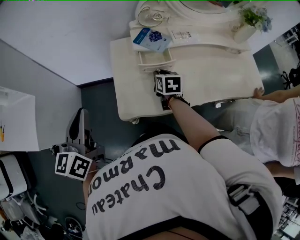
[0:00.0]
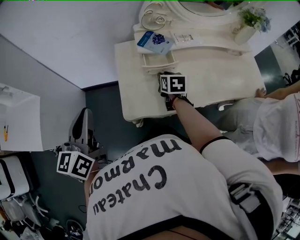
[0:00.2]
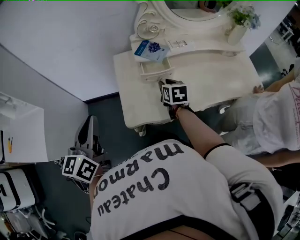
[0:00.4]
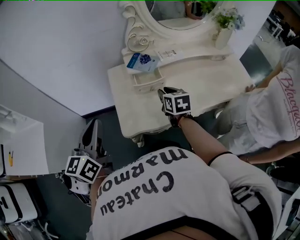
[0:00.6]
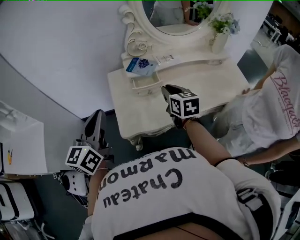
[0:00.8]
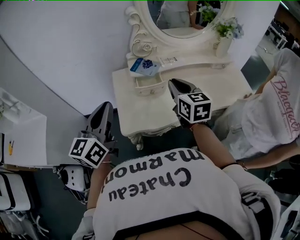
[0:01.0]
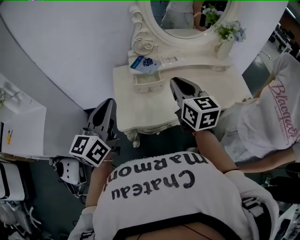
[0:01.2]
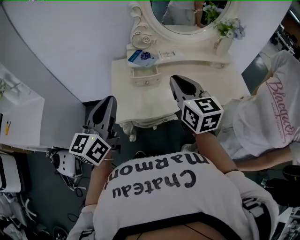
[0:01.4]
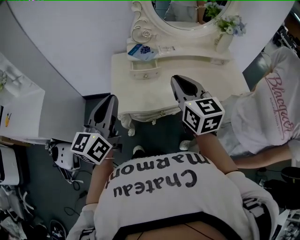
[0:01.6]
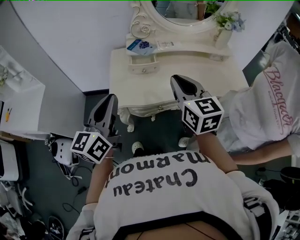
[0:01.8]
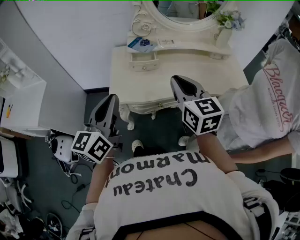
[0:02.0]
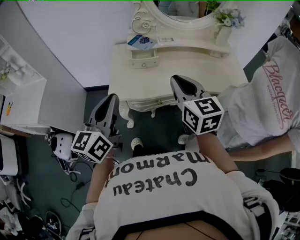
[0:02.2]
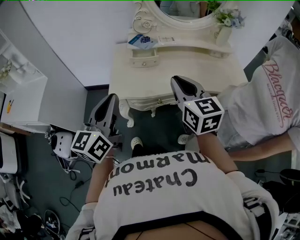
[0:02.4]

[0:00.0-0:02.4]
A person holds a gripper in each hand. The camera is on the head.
0.0 to 1.2 s: The right gripper goes some 30 cm upward and backward, and points its fingers roughly 30 degrees further upward, while the left gripper goes roughly 15 cm to the right and upward.
1.2 to 2.4 s: The right gripper is displaced backward by about 15 cm, while the left gripper shifts some 15 cm backward and to the right.

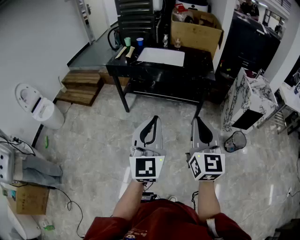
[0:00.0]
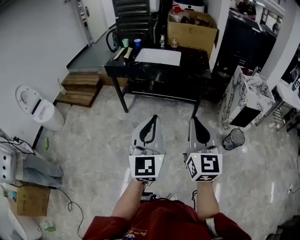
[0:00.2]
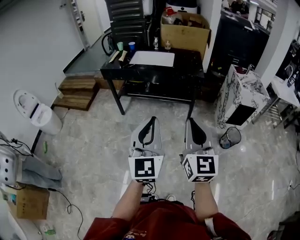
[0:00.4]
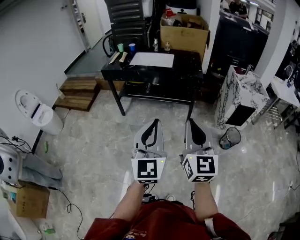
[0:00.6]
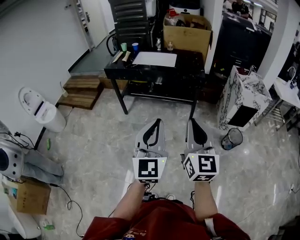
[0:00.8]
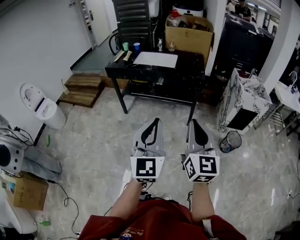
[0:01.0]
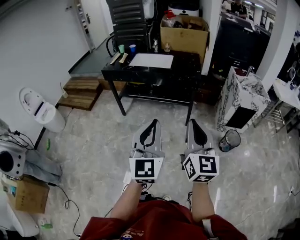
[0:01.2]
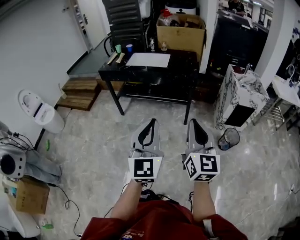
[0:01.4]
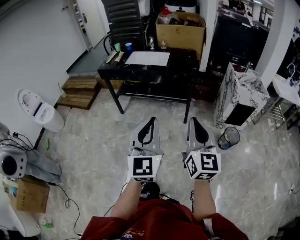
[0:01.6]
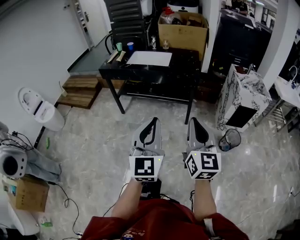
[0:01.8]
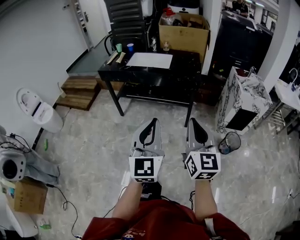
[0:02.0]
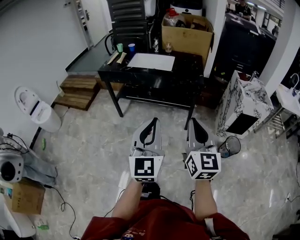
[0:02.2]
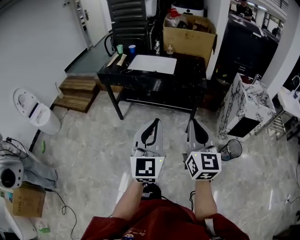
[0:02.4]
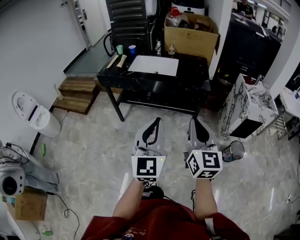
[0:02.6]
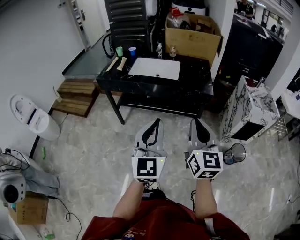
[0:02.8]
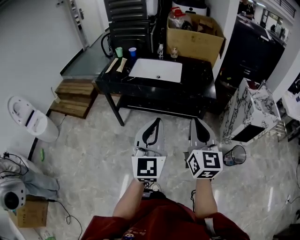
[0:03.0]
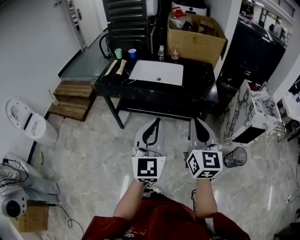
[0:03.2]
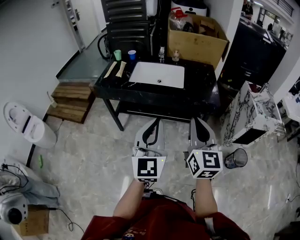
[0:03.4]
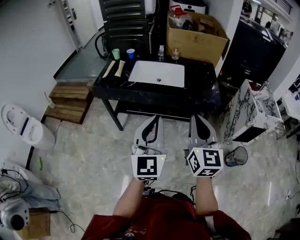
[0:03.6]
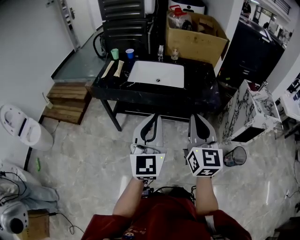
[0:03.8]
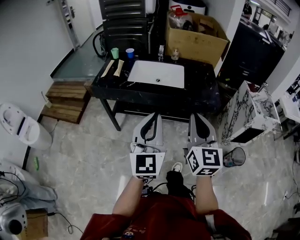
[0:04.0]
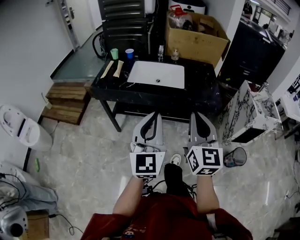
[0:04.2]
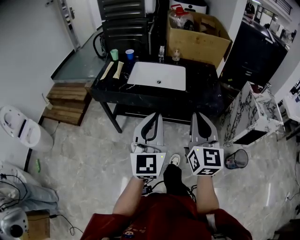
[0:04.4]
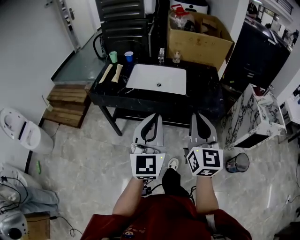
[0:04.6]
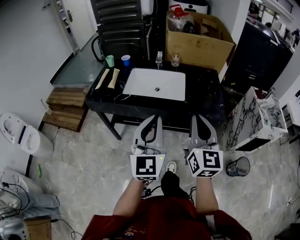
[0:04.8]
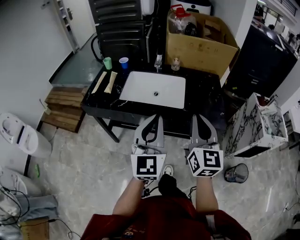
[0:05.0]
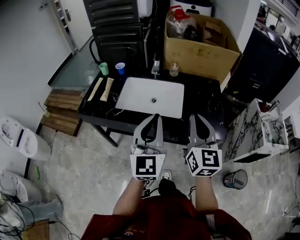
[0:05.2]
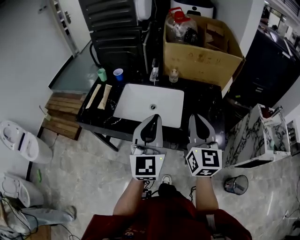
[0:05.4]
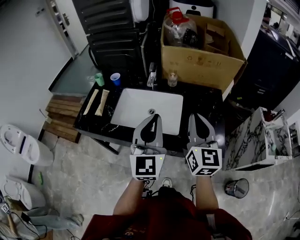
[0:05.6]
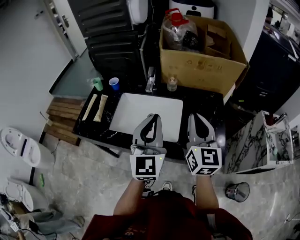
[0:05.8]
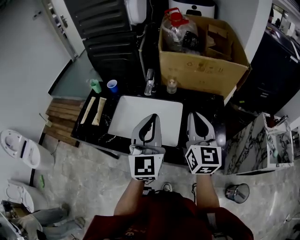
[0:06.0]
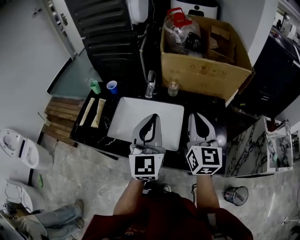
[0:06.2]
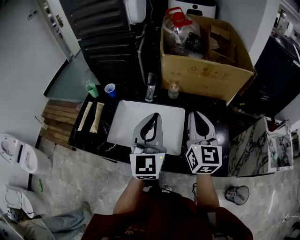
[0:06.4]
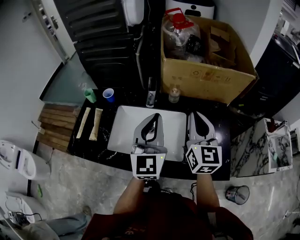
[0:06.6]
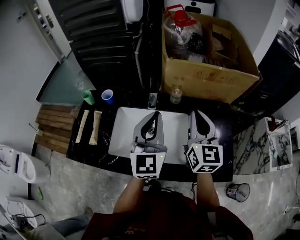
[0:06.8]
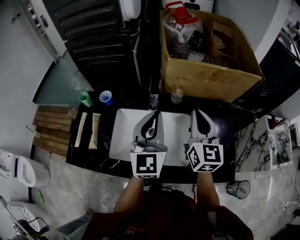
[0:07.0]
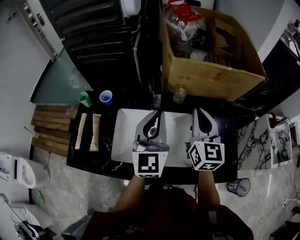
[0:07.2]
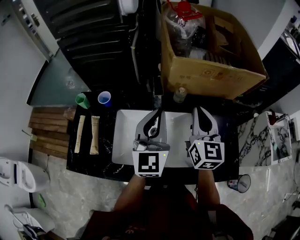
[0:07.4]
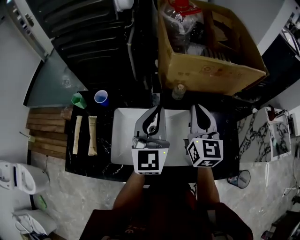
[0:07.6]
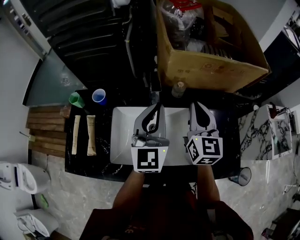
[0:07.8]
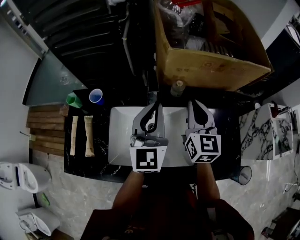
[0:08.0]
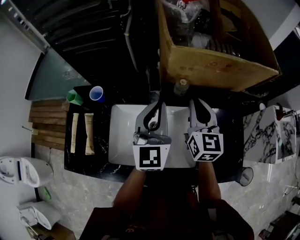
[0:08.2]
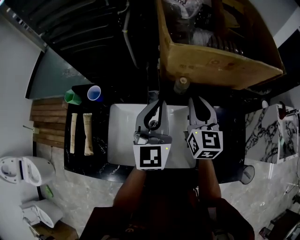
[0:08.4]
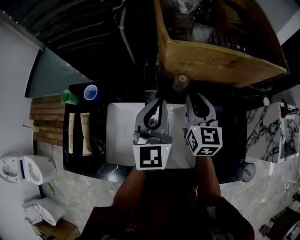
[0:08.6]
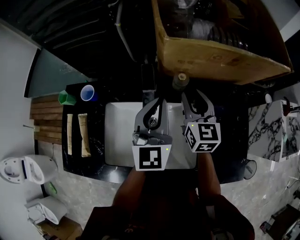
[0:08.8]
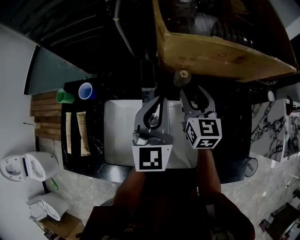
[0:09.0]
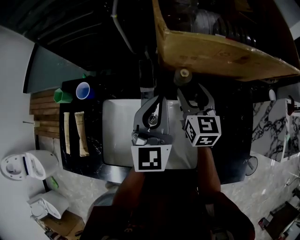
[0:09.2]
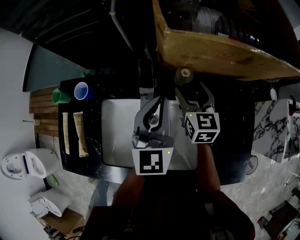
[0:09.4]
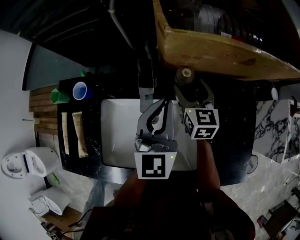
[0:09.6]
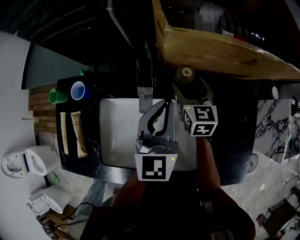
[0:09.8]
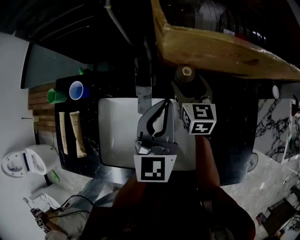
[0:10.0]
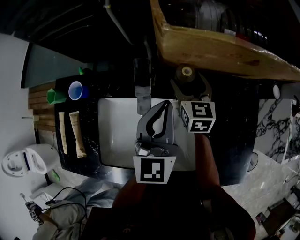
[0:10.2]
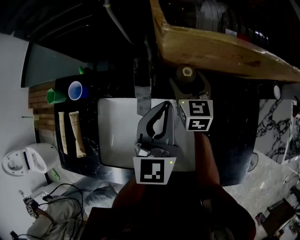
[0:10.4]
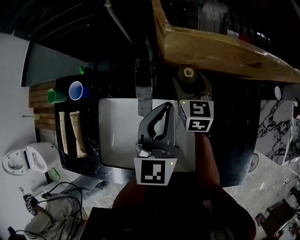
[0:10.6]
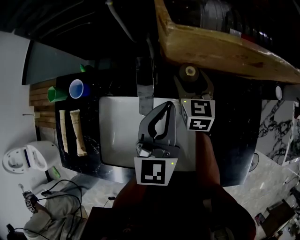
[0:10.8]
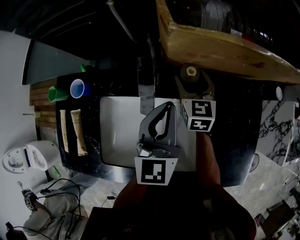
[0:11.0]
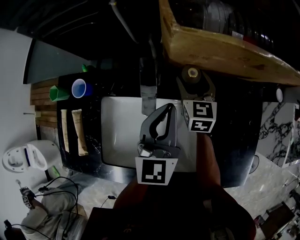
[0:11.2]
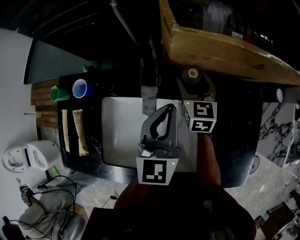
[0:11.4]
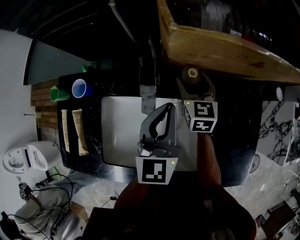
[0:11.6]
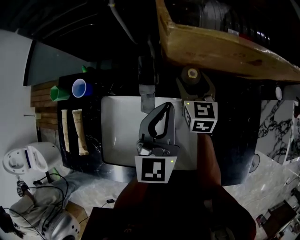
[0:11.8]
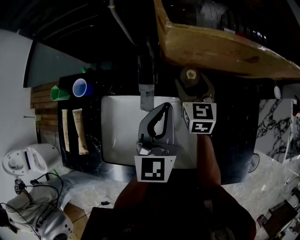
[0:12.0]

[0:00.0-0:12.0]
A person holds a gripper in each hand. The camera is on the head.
0.0 to 1.6 s: Both grippers travel together to the right and backward, approximately 15 cm.
1.6 to 3.0 s: The two grippers go about 30 cm forward and to the left.
3.0 to 4.4 s: The two grippers go about 15 cm forward and to the left.
4.4 to 6.0 s: The pair of grippers is taken forward, approximately 40 cm.
6.0 to 7.6 s: Both grippers move forward and to the left, about 20 cm.
7.6 to 9.0 s: The right gripper travels downward and forward by approximately 20 cm, and opens. Meanwhile the left gripper is displaced forward and downward by approximately 10 cm.
9.0 to 10.4 s: The right gripper shifts approximately 10 cm downward and forward, and opens.
10.4 to 12.0 s: The grippers make only small movements.

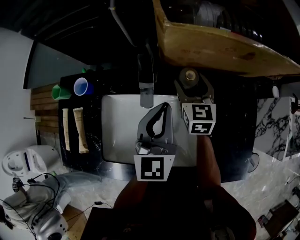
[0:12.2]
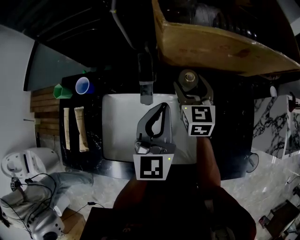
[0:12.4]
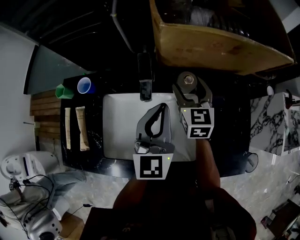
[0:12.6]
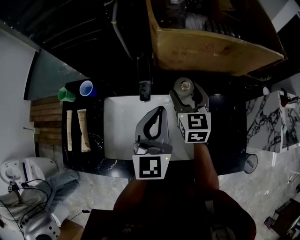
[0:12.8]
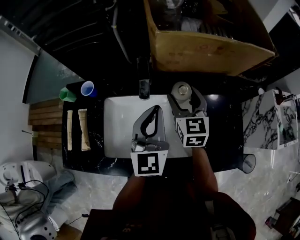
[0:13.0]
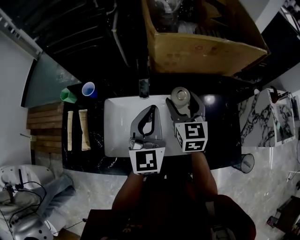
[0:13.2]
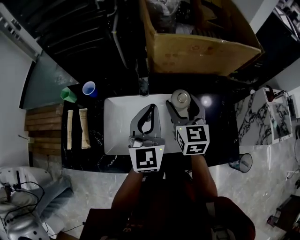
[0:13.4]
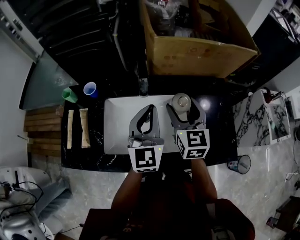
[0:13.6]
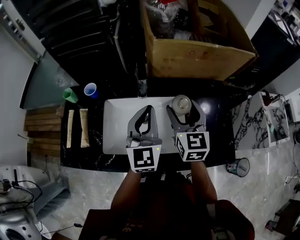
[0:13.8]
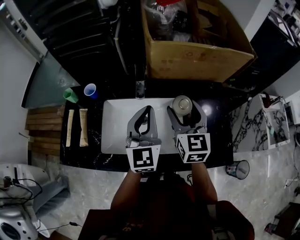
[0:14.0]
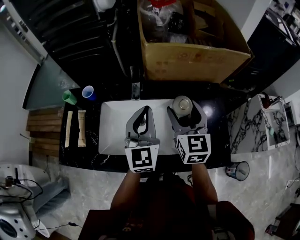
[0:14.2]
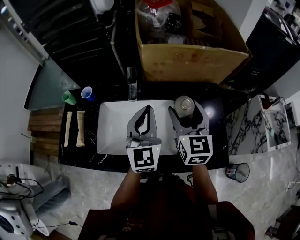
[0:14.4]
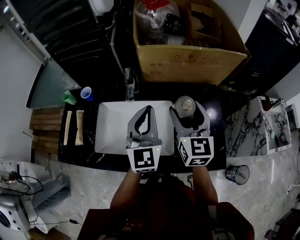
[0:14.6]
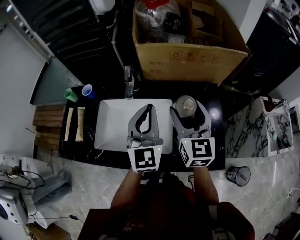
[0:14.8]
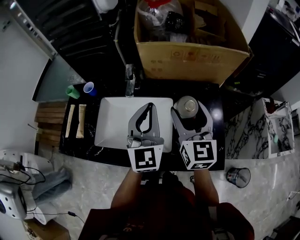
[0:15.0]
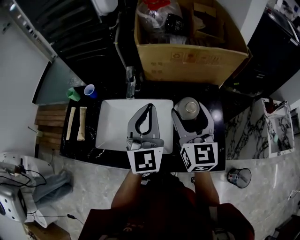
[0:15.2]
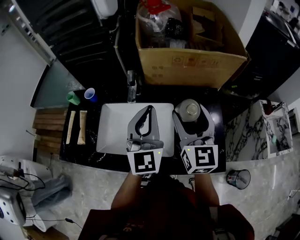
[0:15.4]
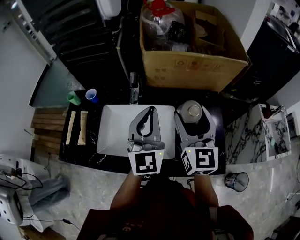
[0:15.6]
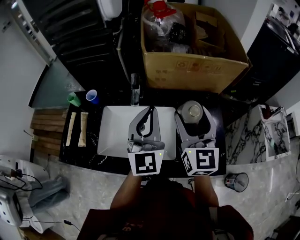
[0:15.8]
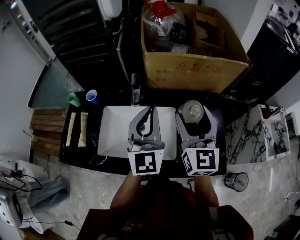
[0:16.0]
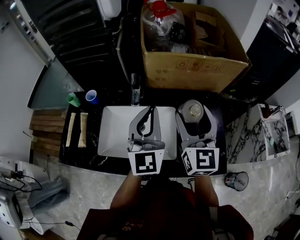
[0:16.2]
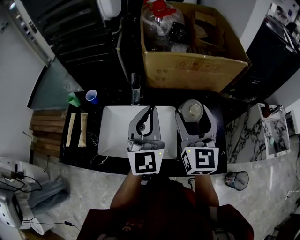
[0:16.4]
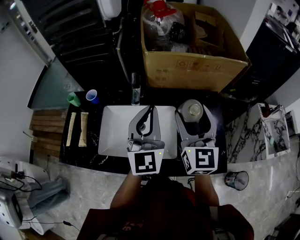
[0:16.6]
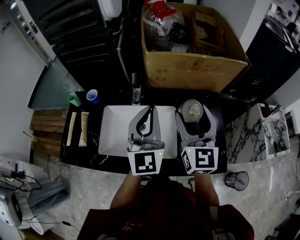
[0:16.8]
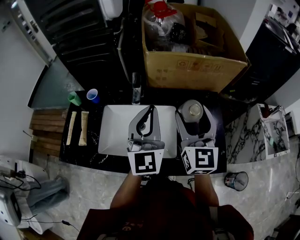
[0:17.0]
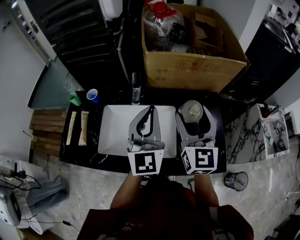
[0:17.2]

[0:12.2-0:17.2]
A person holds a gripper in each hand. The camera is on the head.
12.2 to 13.8 s: The right gripper shifts about 25 cm backward and upward, while the left gripper shifts approximately 15 cm backward and upward.
13.8 to 15.6 s: The left gripper travels to the right and upward by some 10 cm, while the right gripper shifts some 10 cm upward and to the right.
15.6 to 17.2 s: The grippers make only small movements.

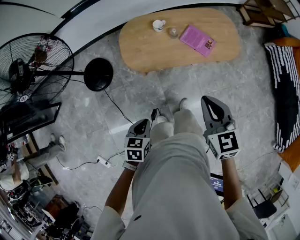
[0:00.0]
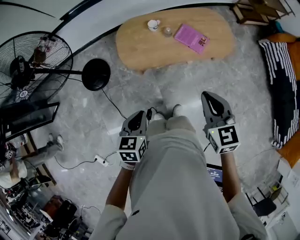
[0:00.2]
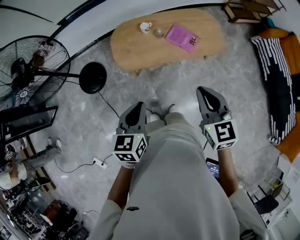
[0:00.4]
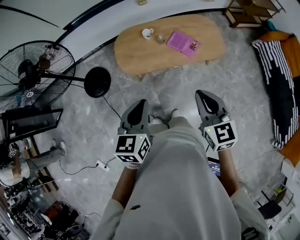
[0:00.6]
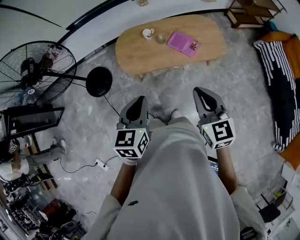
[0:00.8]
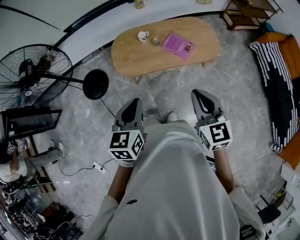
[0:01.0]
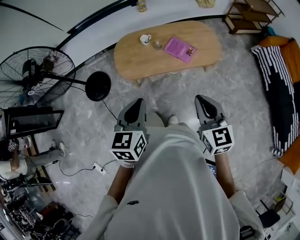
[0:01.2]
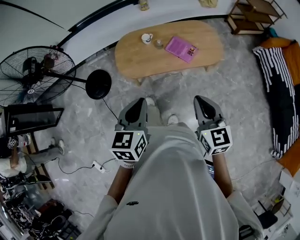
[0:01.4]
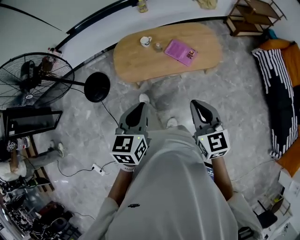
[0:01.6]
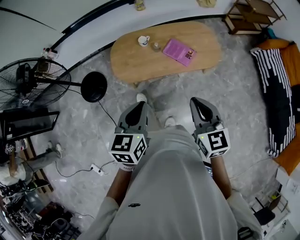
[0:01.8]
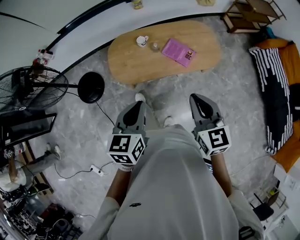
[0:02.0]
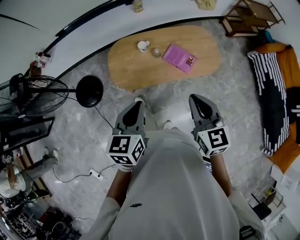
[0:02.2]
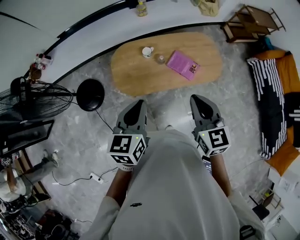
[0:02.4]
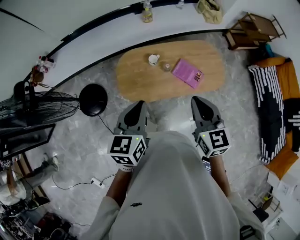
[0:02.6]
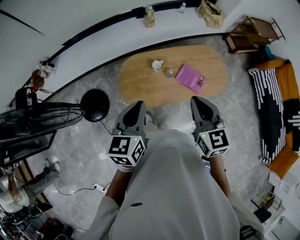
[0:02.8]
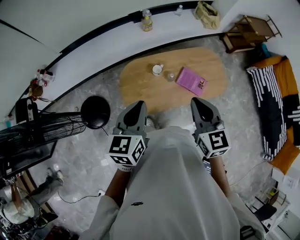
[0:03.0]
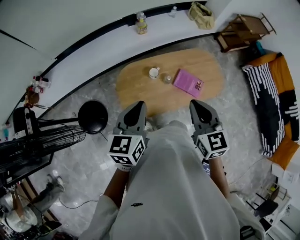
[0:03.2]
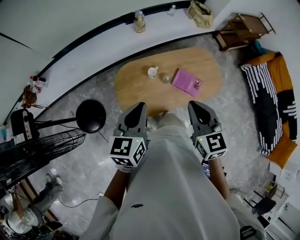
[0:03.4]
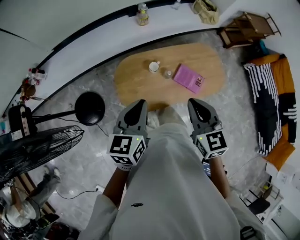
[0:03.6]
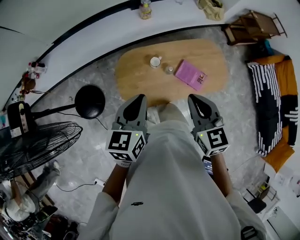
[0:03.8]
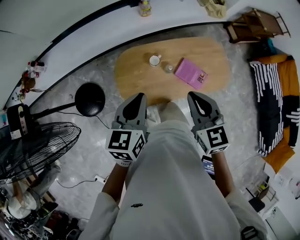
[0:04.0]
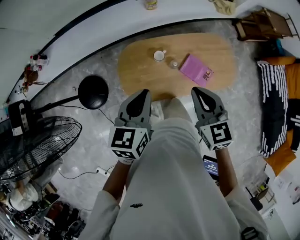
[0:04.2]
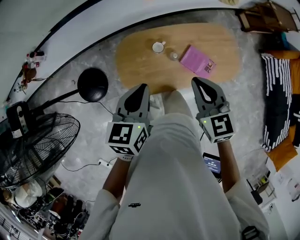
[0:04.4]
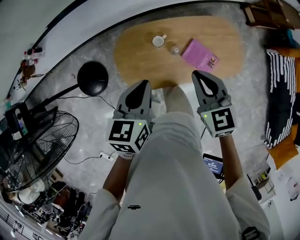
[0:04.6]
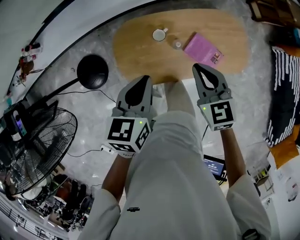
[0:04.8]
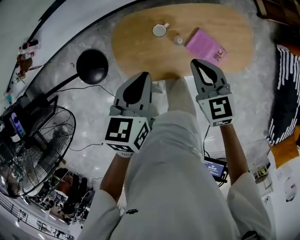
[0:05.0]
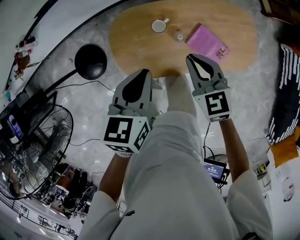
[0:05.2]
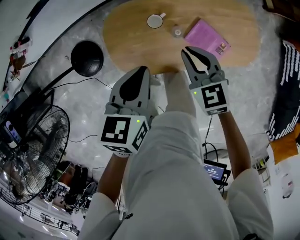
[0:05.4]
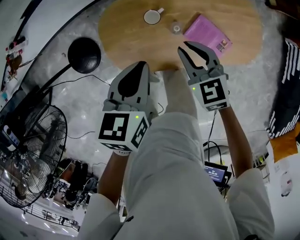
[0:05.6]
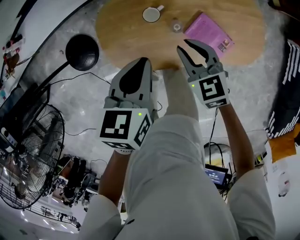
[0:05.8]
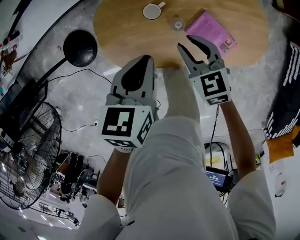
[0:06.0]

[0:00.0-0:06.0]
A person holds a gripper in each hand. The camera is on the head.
0.0 to 1.6 s: The left gripper shifts about 25 cm upward and to the right, and swivels roughly 30 degrees, while the right gripper is displaced to the right, backward and upward by about 15 cm.
1.6 to 3.0 s: The grippers both shift forward and to the left by about 30 cm.
3.0 to 4.4 s: Both grippers travel together forward and downward, roughly 15 cm.
4.4 to 6.0 s: The left gripper moves downward, to the right and forward, approximately 20 cm, while the right gripper is displaced downward by some 25 cm, and changes its angle by approximately 20 degrees.
